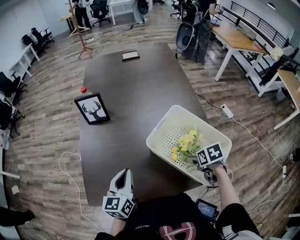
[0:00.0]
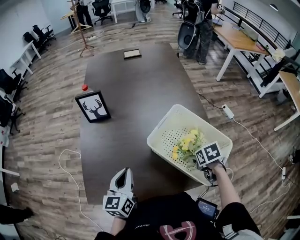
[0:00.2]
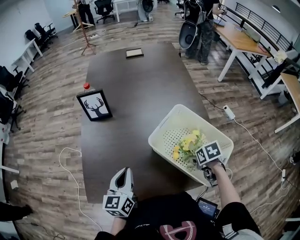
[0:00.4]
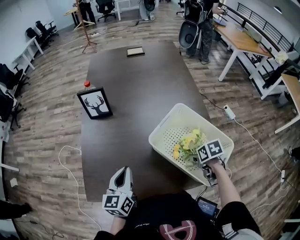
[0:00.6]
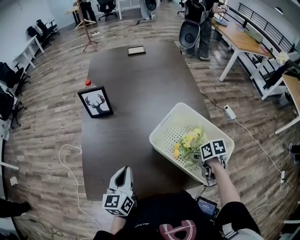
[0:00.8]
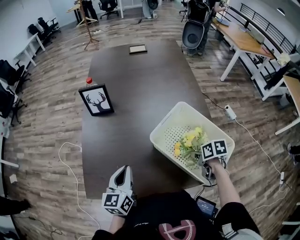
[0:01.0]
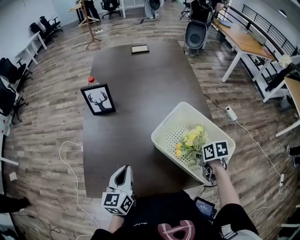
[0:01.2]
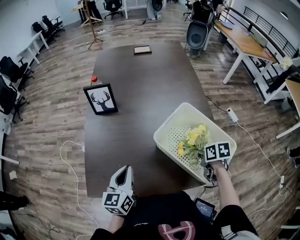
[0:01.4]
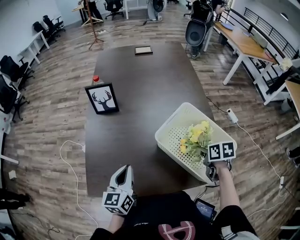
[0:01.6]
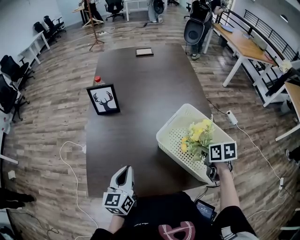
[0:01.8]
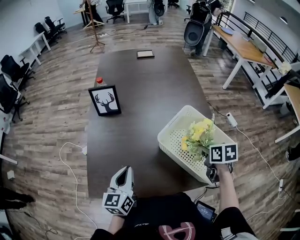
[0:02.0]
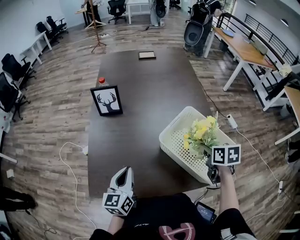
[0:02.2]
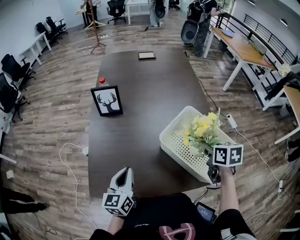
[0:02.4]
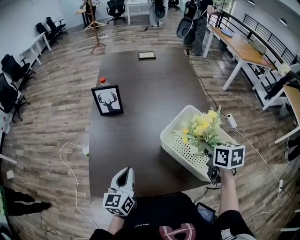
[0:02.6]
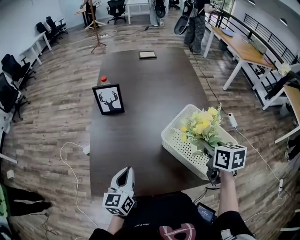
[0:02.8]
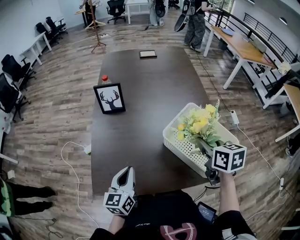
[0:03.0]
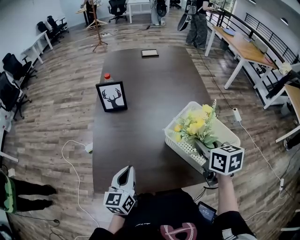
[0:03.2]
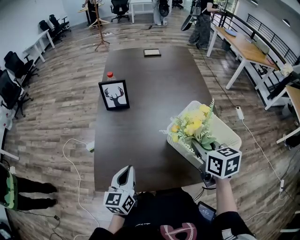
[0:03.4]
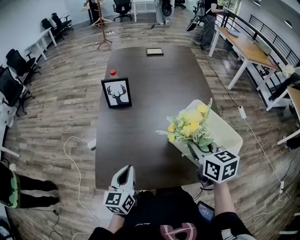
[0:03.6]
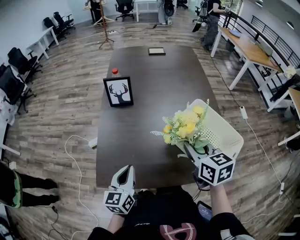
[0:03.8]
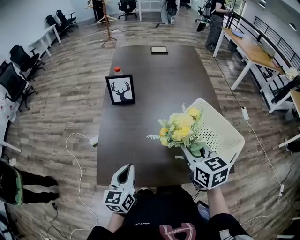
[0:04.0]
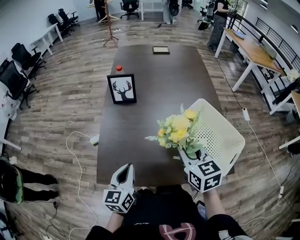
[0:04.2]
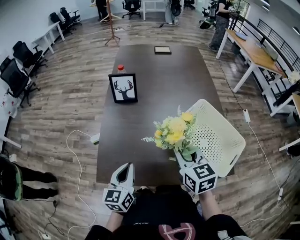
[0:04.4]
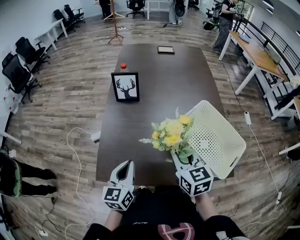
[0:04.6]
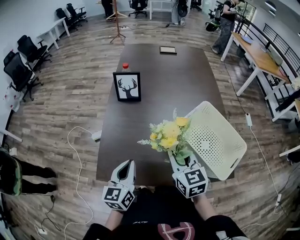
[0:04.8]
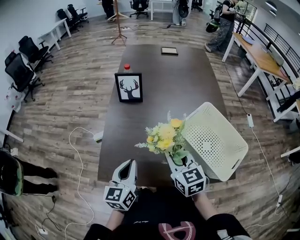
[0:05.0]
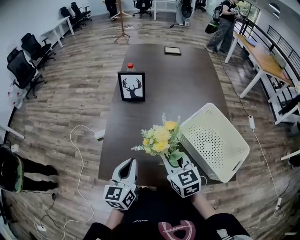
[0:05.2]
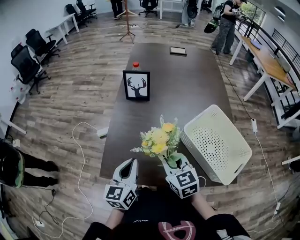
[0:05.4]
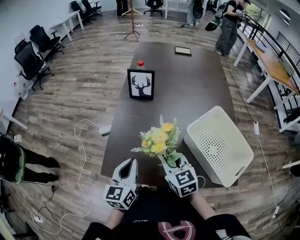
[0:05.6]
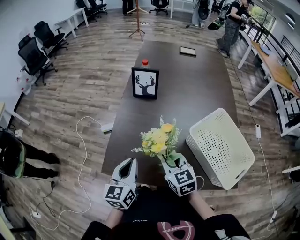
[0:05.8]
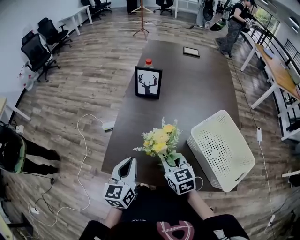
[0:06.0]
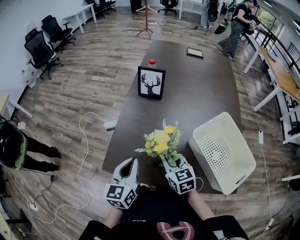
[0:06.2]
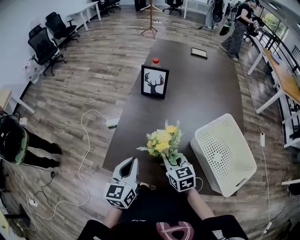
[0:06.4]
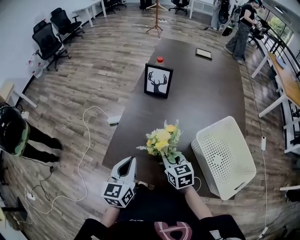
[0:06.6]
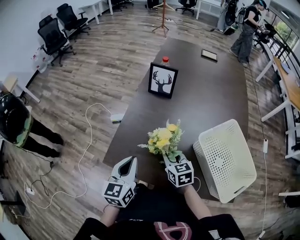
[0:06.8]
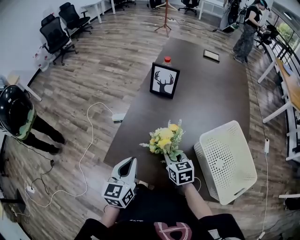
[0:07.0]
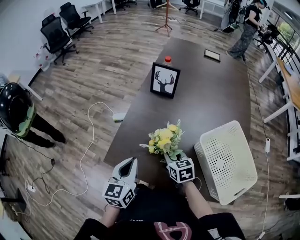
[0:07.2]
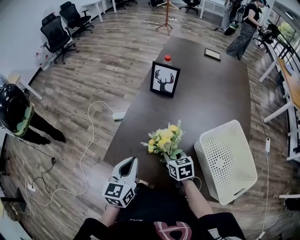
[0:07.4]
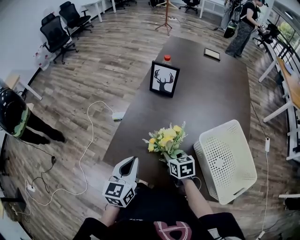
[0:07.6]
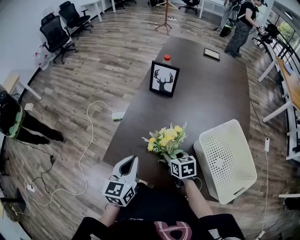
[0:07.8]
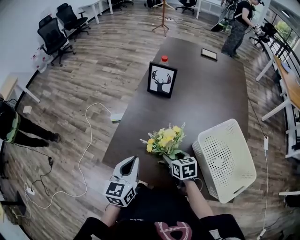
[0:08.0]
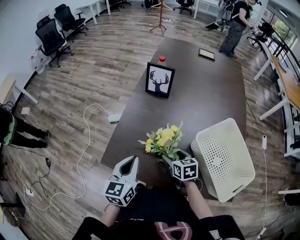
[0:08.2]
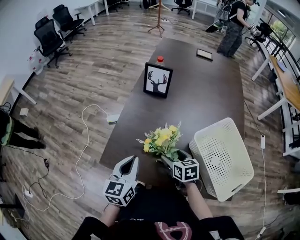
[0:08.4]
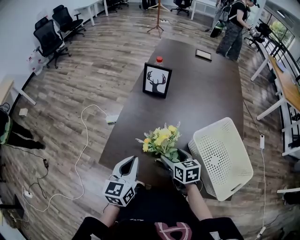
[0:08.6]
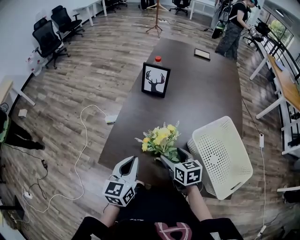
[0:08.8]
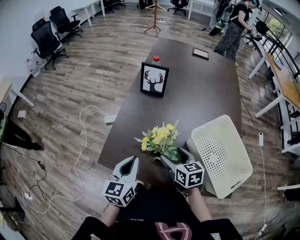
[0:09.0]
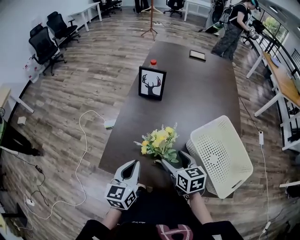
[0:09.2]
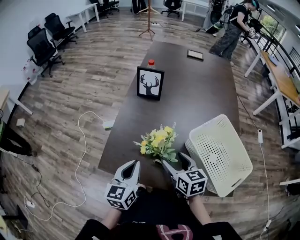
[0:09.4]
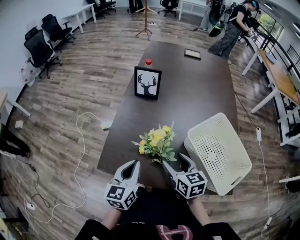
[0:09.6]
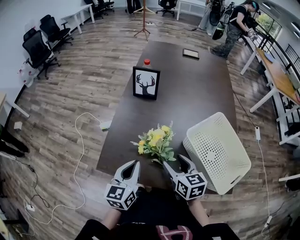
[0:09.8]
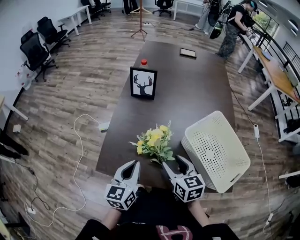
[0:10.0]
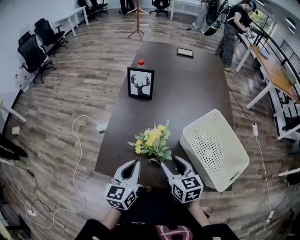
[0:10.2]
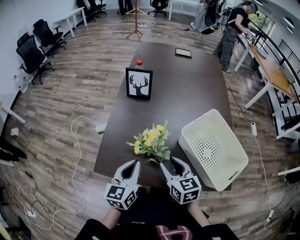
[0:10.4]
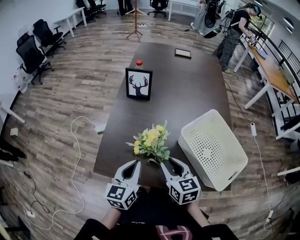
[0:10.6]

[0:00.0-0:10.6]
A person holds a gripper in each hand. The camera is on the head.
0:00.0 to 0:01.6: The right gripper closes.
0:01.6 to 0:03.0: The right gripper travels upward and to the left by about 15 cm, and swivels roughly 20 degrees.
0:03.0 to 0:04.6: The right gripper shifts roughly 15 cm to the left, and changes its angle by roughly 20 degrees.
0:04.6 to 0:06.0: The right gripper goes about 10 cm to the left and downward.
0:06.0 to 0:07.6: The right gripper travels downward by roughly 10 cm, and turns by about 20 degrees.
0:07.6 to 0:09.0: The right gripper heads upward, covering about 10 cm, and opens up.
0:09.0 to 0:10.6: The right gripper shifts by about 5 cm, and closes up.

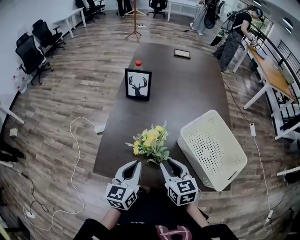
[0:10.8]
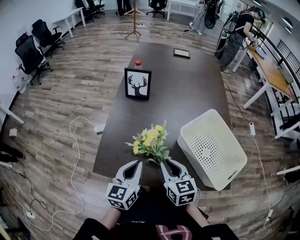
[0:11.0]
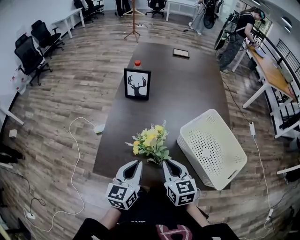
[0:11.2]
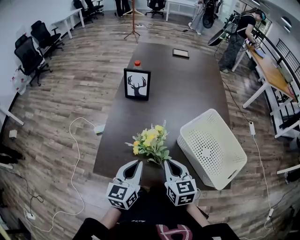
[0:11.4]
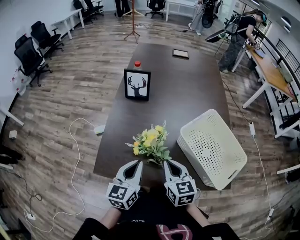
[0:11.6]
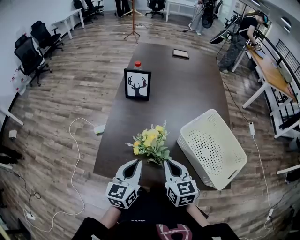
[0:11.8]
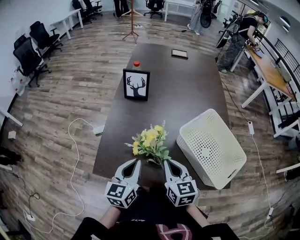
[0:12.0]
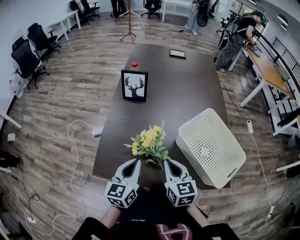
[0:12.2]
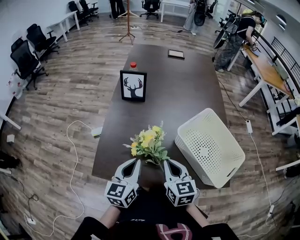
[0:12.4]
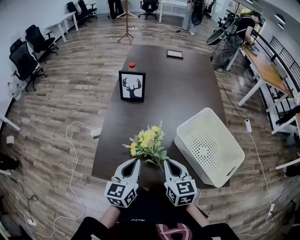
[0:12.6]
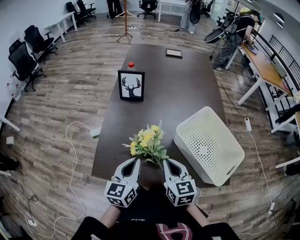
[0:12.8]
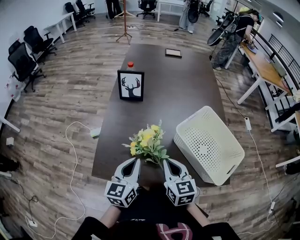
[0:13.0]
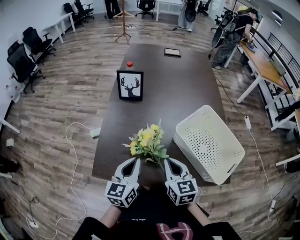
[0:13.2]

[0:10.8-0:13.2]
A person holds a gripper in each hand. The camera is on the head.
0:10.8 to 0:12.0: The grippers move only a little.
0:12.0 to 0:13.2: Both grippers stay about where they are.

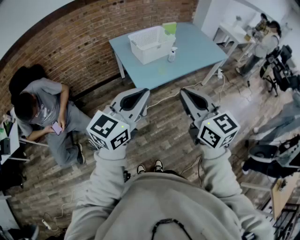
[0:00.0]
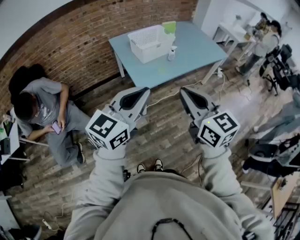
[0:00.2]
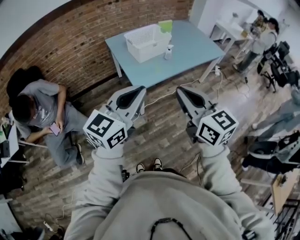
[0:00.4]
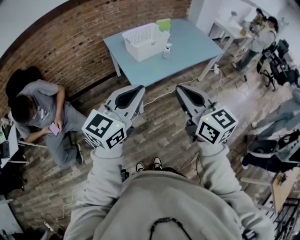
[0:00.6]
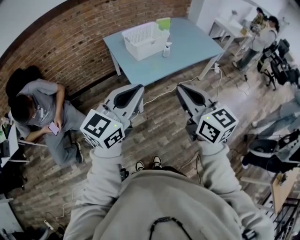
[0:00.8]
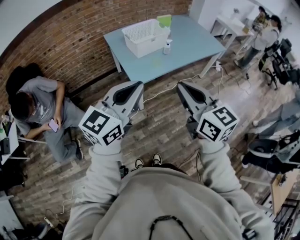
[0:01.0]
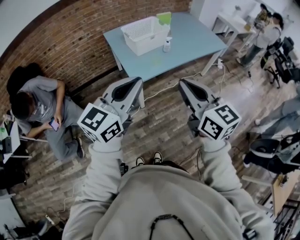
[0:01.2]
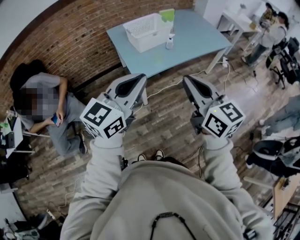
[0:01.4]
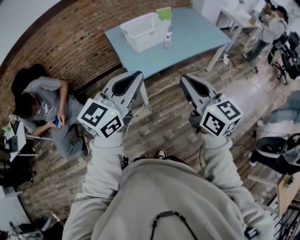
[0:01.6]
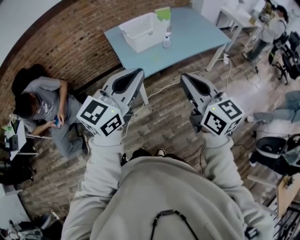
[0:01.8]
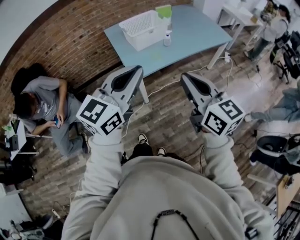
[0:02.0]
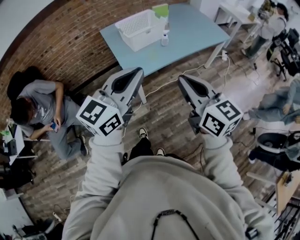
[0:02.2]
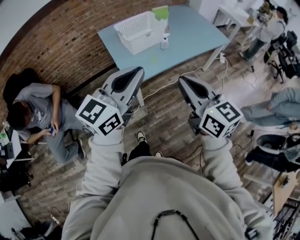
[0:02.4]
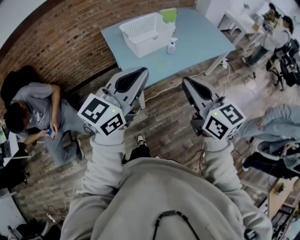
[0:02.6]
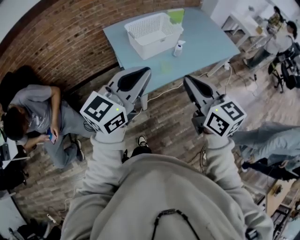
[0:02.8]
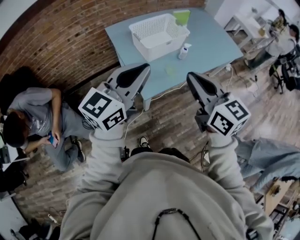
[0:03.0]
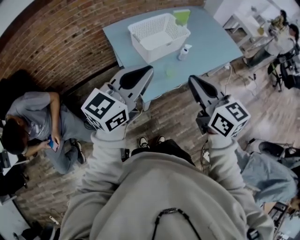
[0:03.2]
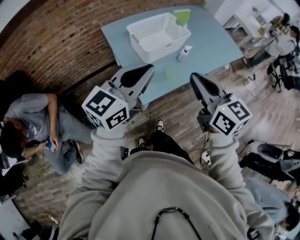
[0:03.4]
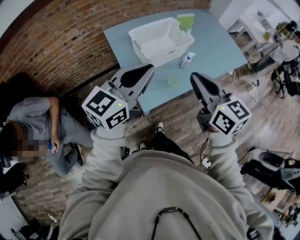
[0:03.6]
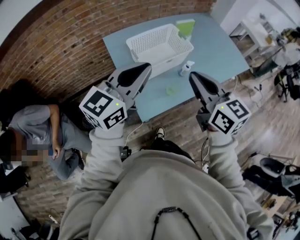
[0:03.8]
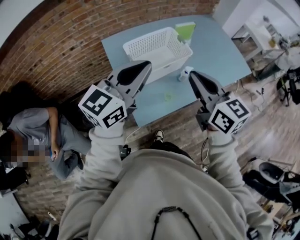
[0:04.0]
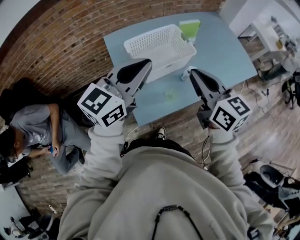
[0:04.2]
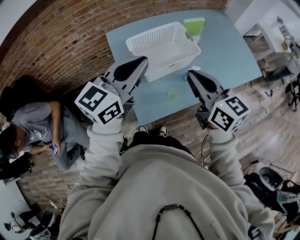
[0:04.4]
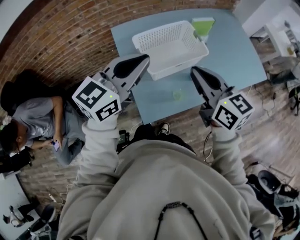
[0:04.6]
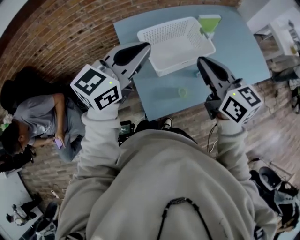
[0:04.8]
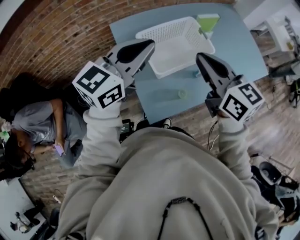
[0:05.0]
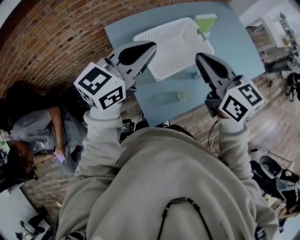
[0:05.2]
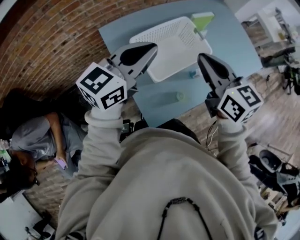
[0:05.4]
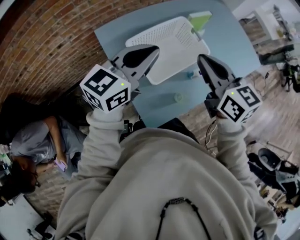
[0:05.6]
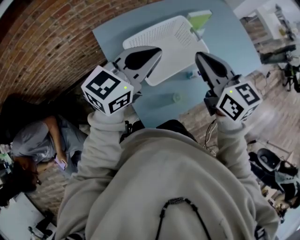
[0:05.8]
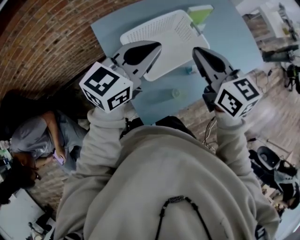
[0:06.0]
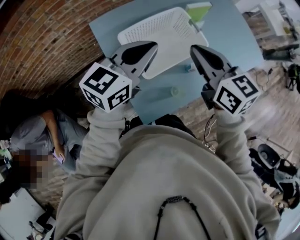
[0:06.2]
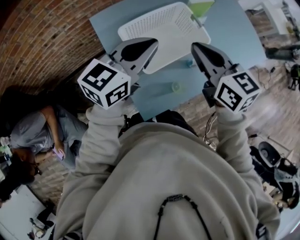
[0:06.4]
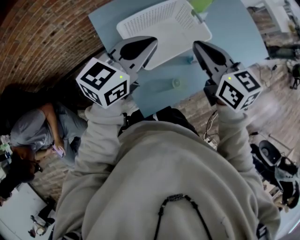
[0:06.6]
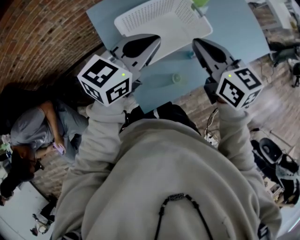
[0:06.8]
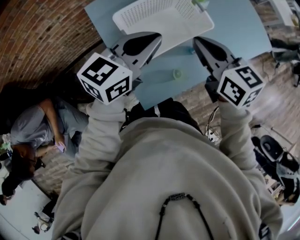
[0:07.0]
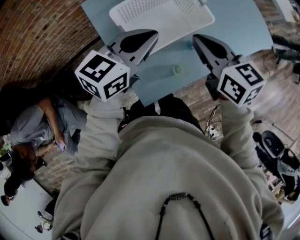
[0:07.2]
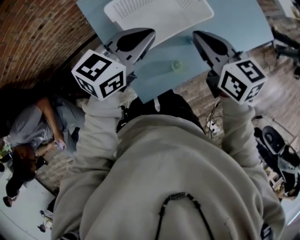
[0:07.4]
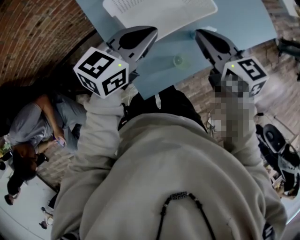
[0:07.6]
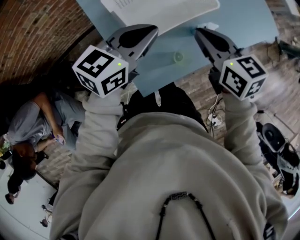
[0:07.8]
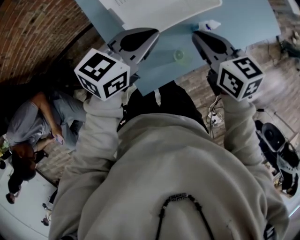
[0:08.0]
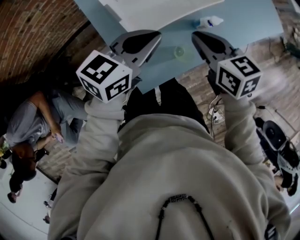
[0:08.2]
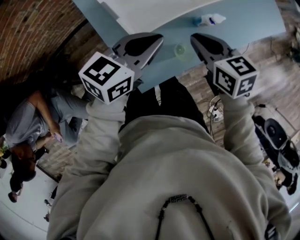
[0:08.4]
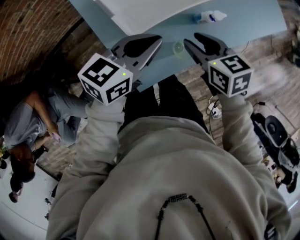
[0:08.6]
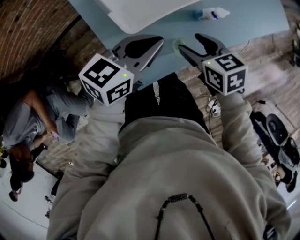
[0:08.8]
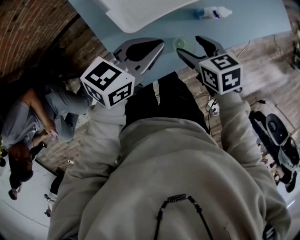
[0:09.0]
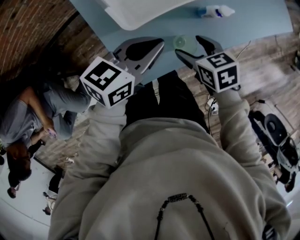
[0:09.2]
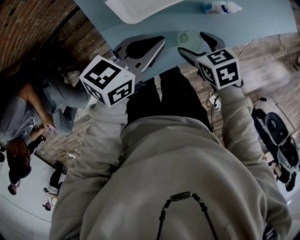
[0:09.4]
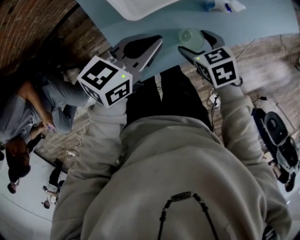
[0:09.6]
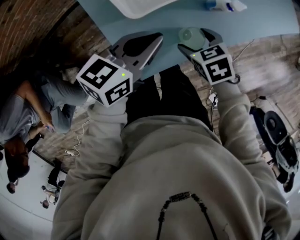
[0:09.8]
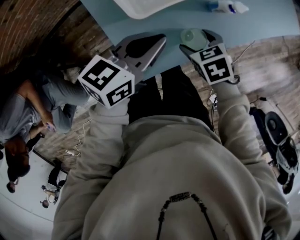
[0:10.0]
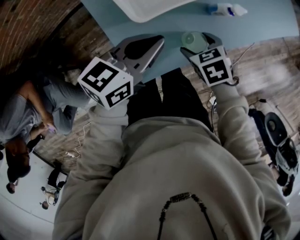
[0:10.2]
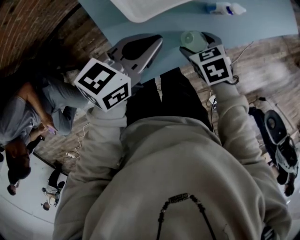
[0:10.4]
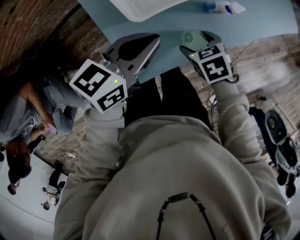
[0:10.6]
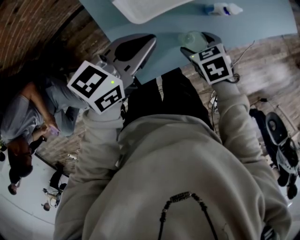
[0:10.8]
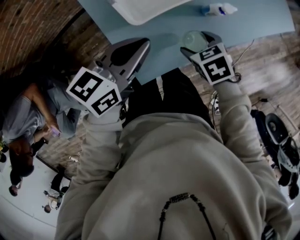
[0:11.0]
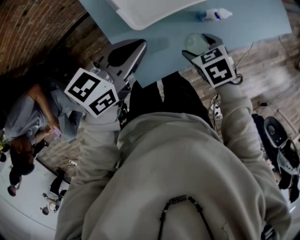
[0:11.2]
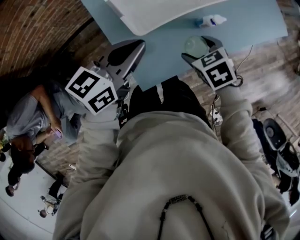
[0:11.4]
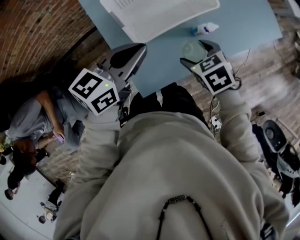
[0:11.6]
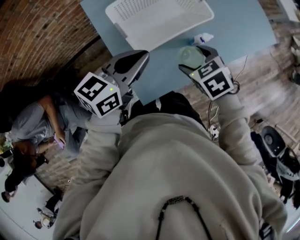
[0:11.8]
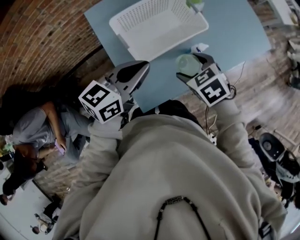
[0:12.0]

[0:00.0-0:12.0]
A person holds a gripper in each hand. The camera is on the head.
0:00.0 to 0:01.6: The grippers both shift to the right by some 10 cm.
0:01.6 to 0:03.0: Both grippers move forward and to the left, approximately 25 cm.
0:03.0 to 0:04.4: Both grippers move forward, about 25 cm.
0:04.4 to 0:06.0: The left gripper travels forward and downward by roughly 15 cm, while the right gripper shifts about 15 cm forward and to the left.
0:06.0 to 0:07.6: Both grippers move downward, some 10 cm.
0:07.6 to 0:09.0: The right gripper shifts roughly 20 cm downward and backward, changes its angle by roughly 30 degrees, and opens its fingers. The left gripper travels downward and backward by roughly 15 cm.
0:09.0 to 0:10.4: The right gripper goes approximately 5 cm downward, and turns by about 20 degrees.
0:10.4 to 0:12.0: The grippers both shift upward by roughly 20 cm.
